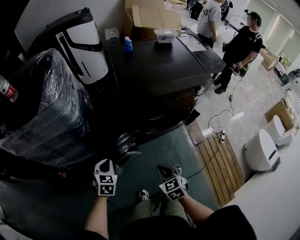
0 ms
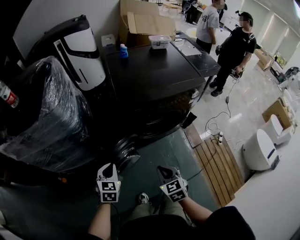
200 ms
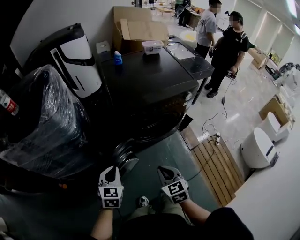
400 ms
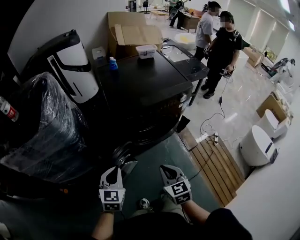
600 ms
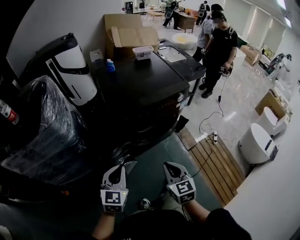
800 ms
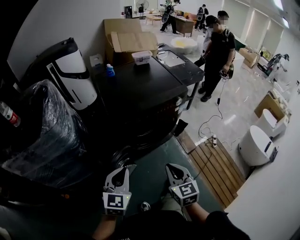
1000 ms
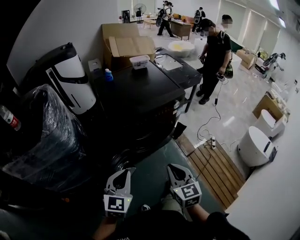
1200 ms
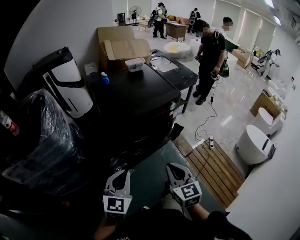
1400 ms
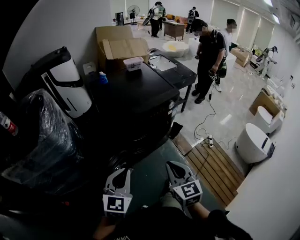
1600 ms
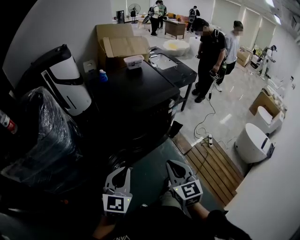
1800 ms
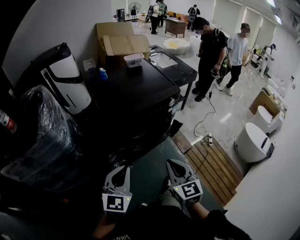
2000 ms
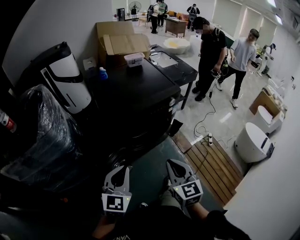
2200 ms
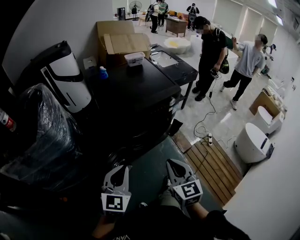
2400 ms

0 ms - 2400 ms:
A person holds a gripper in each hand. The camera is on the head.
0 ms - 1200 ms: Both grippers move upward and to the right, about 25 cm. The right gripper rotates about 30 degrees; the left gripper turns by approximately 30 degrees.
1200 ms - 2400 ms: The grippers make only small movements.

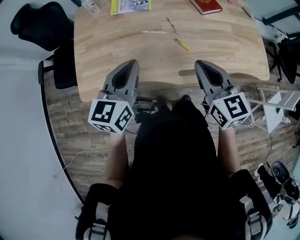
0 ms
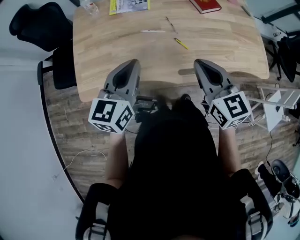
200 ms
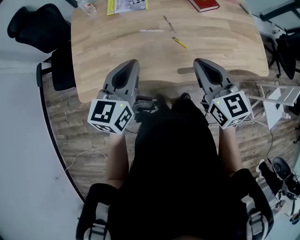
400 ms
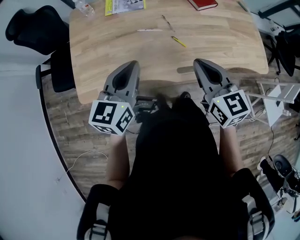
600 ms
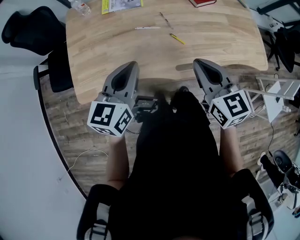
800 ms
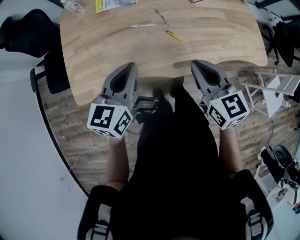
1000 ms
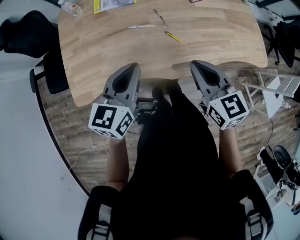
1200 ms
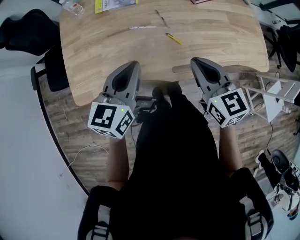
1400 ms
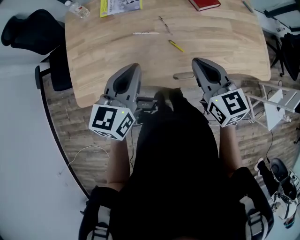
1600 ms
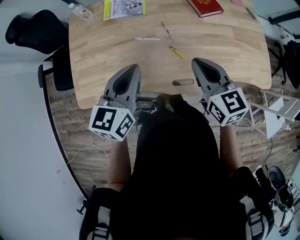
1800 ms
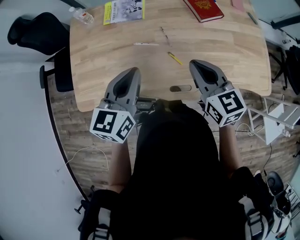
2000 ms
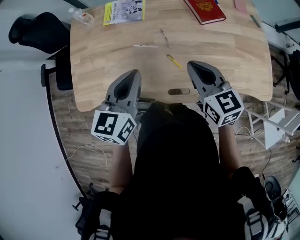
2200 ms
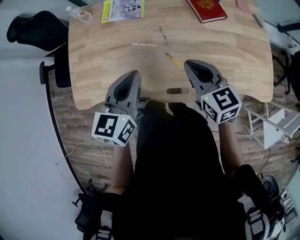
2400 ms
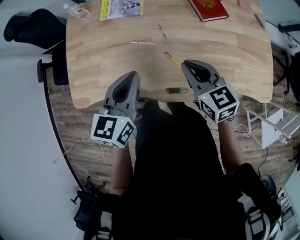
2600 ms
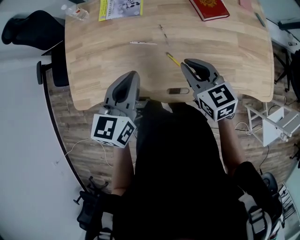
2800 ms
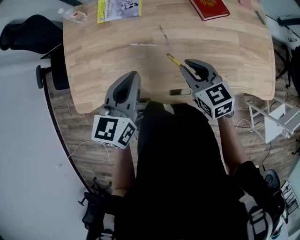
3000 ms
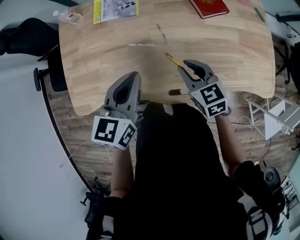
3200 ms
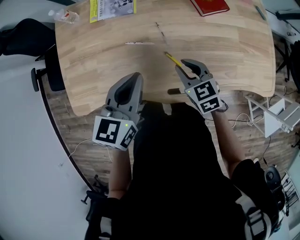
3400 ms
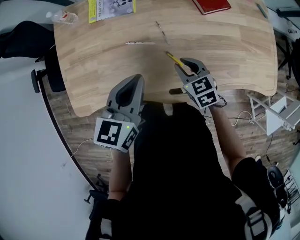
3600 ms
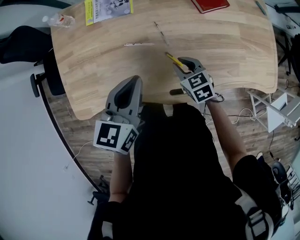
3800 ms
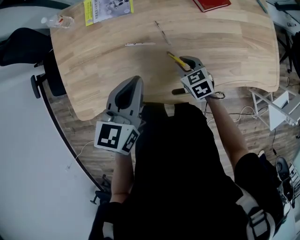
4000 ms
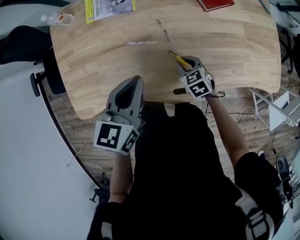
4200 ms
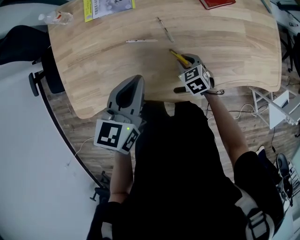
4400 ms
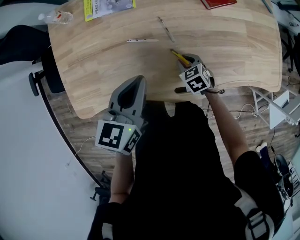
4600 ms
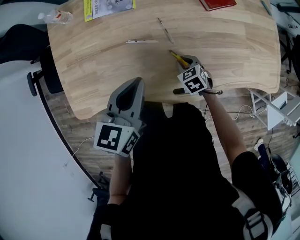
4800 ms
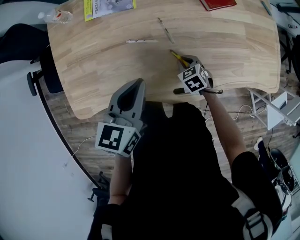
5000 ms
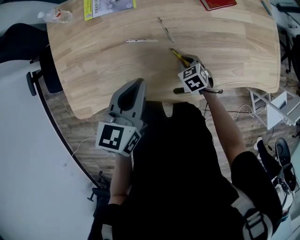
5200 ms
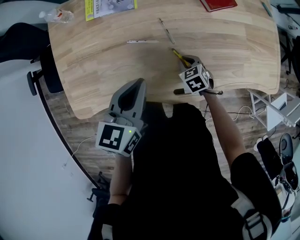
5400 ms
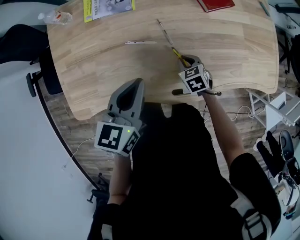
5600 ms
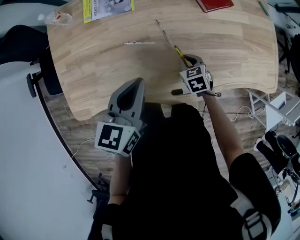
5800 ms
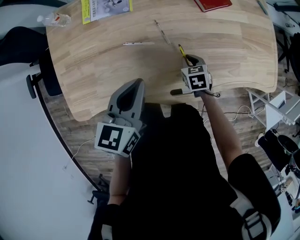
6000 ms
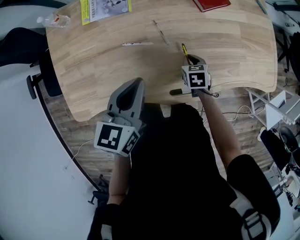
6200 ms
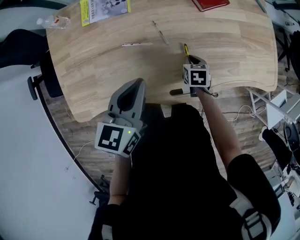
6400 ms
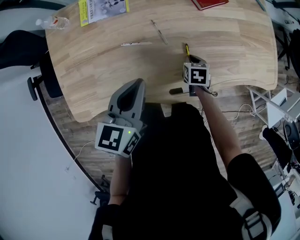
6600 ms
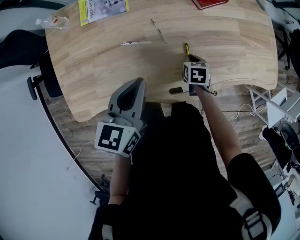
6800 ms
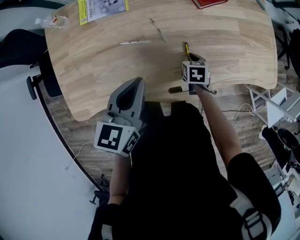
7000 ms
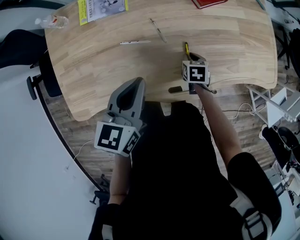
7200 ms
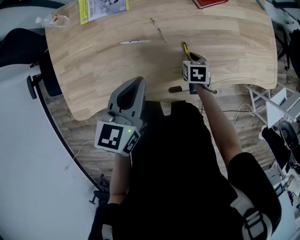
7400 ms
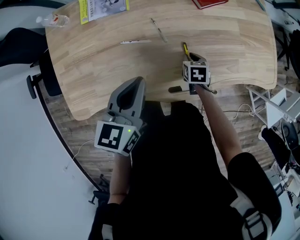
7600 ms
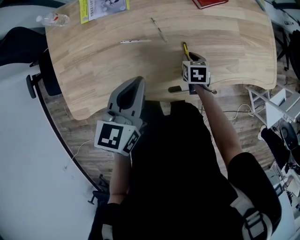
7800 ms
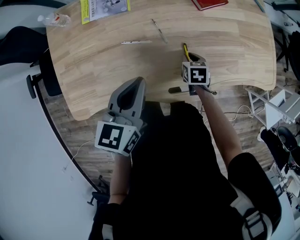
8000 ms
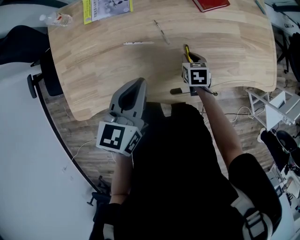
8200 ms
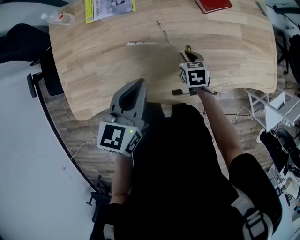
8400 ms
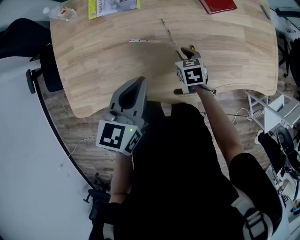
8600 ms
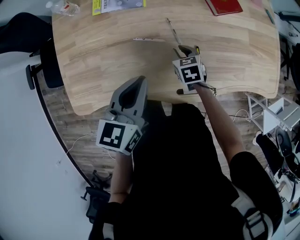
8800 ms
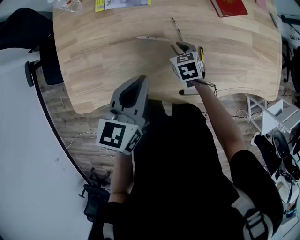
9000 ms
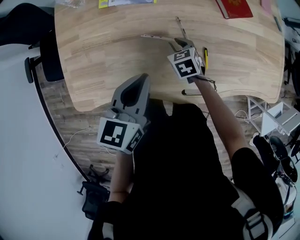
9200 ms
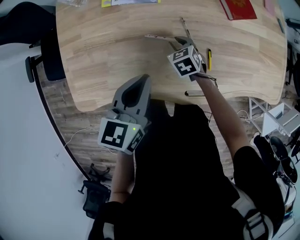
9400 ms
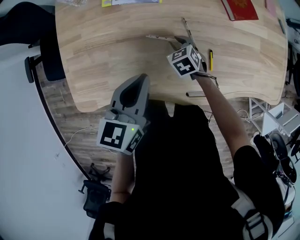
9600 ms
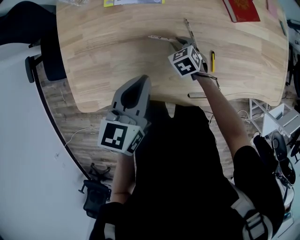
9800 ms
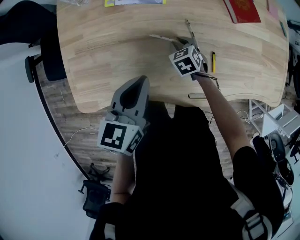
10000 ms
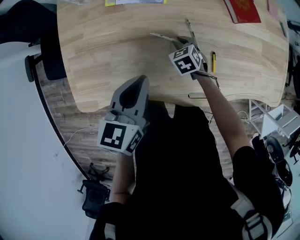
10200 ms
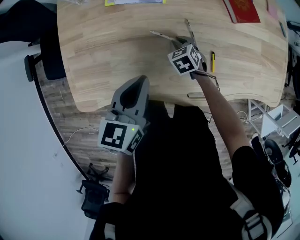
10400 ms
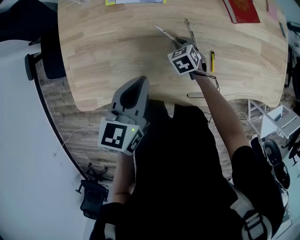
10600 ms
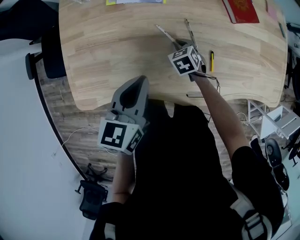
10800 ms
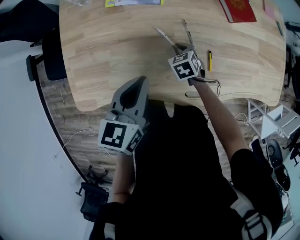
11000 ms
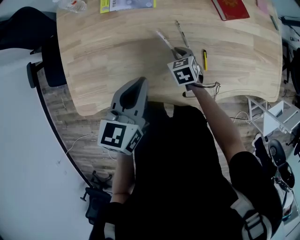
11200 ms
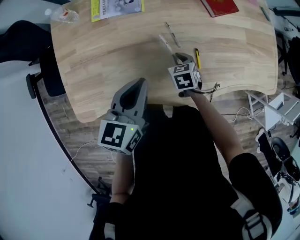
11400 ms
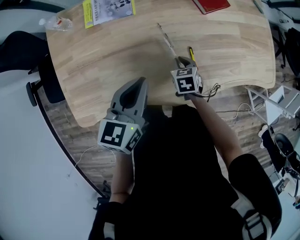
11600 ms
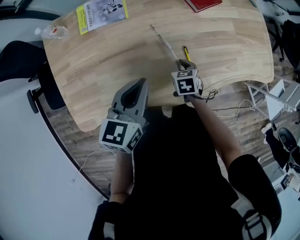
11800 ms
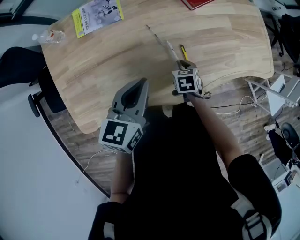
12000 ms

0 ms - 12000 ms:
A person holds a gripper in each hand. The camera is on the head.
0 ms - 1600 ms: The left gripper heads to the right, covering some 5 cm. Meanwhile the right gripper is displaced forward by about 5 cm.
1600 ms - 3000 ms: The right gripper heads forward and downward, covering roughly 15 cm, while the left gripper travels forward by some 5 cm.
3000 ms - 4400 ms: The left gripper heads downward, covering about 5 cm; the right gripper travels downward by roughly 20 cm, and turns by about 30 degrees.
4400 ms - 6000 ms: The grippers move only a little.
6000 ms - 7600 ms: There are only small adjustments of the grippers.
7600 ms - 9000 ms: The left gripper shifts some 5 cm to the left. Meanwhile the right gripper is displaced to the left by roughly 15 cm, and swivels about 20 degrees.
9000 ms - 10400 ms: The right gripper shifts by about 5 cm. The left gripper changes place by roughly 5 cm.
10400 ms - 12000 ms: The left gripper moves to the right, roughly 10 cm, while the right gripper heads to the right and backward, covering some 20 cm, and changes its angle by approximately 40 degrees.

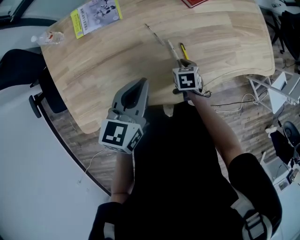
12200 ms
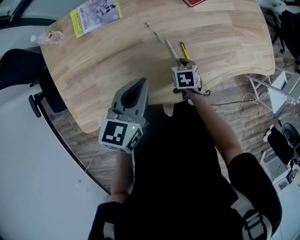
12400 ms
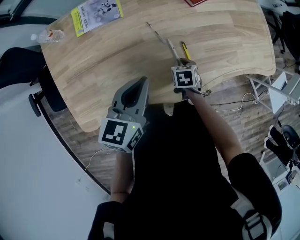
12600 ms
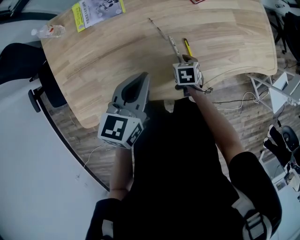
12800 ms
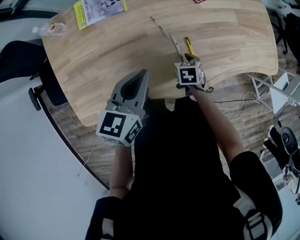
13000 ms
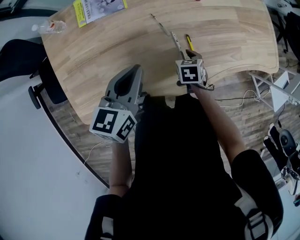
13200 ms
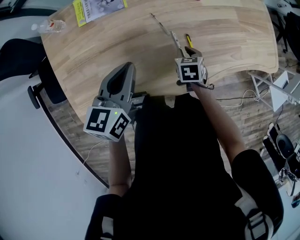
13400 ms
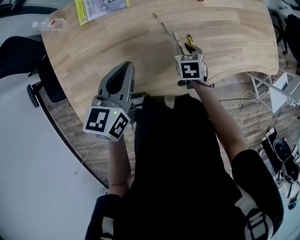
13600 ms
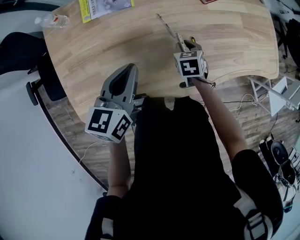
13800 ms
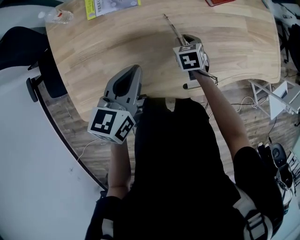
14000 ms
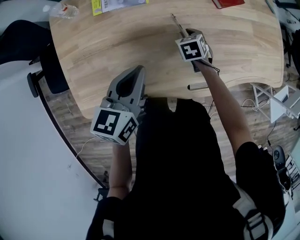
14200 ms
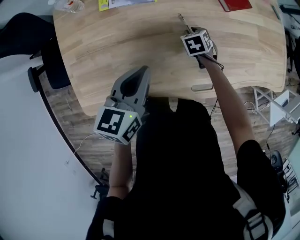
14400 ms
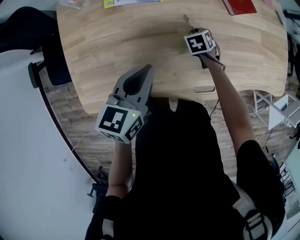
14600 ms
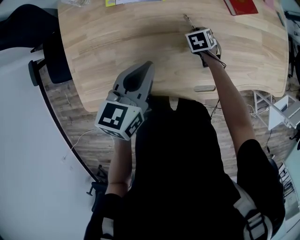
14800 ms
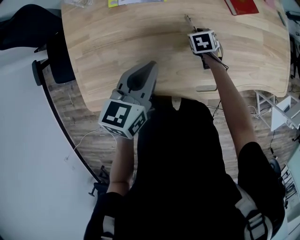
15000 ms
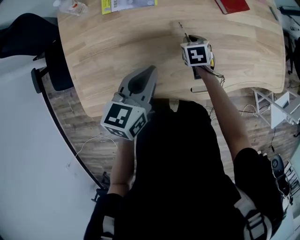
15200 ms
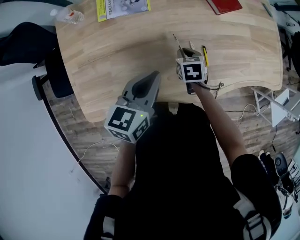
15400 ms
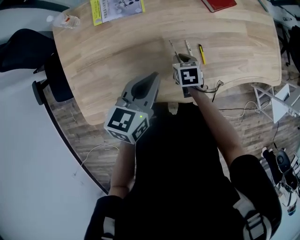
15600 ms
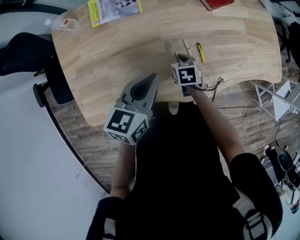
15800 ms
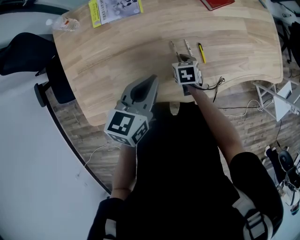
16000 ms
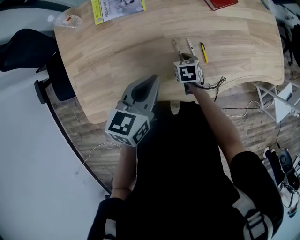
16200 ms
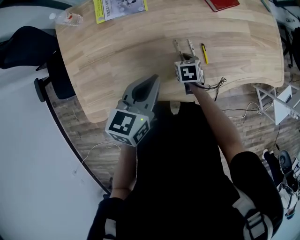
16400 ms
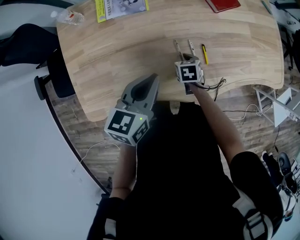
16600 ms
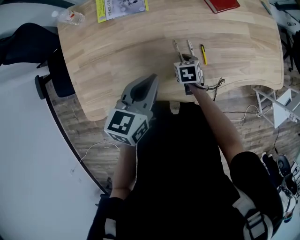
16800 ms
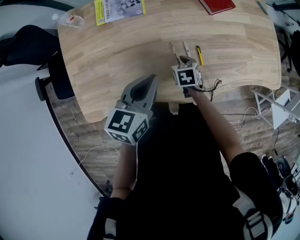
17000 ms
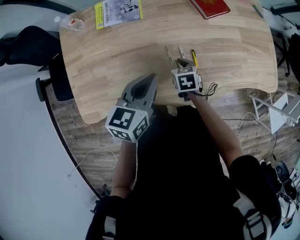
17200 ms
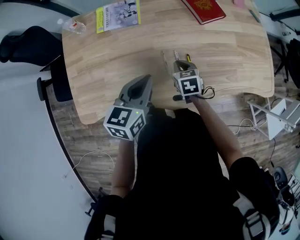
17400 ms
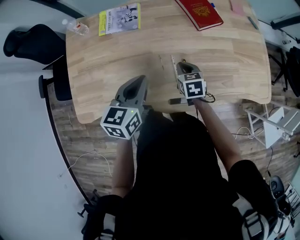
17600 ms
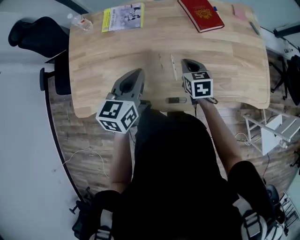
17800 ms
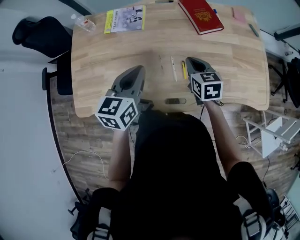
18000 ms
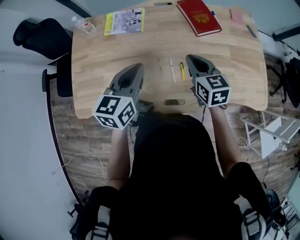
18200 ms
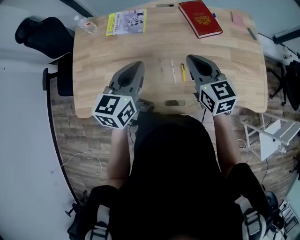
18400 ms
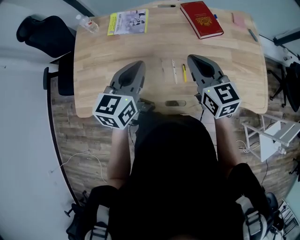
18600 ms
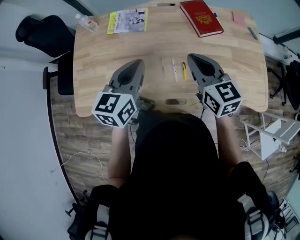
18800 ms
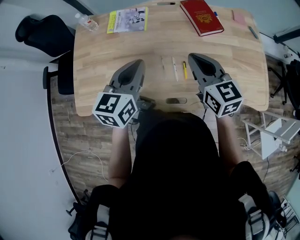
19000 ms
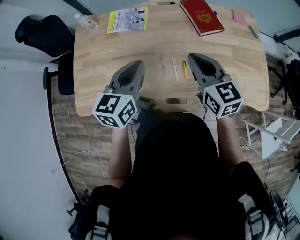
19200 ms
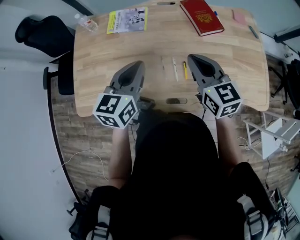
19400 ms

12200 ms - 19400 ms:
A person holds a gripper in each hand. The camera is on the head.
12200 ms - 13600 ms: The left gripper travels to the left by roughly 5 cm. The right gripper moves about 5 cm.
13600 ms - 15000 ms: The right gripper moves forward and to the left, some 10 cm.
15000 ms - 16600 ms: The left gripper heads to the right, covering about 5 cm. Meanwhile the right gripper travels backward by approximately 10 cm.
16600 ms - 18000 ms: The right gripper moves upward and to the right, roughly 25 cm, and rotates some 30 degrees. Meanwhile the left gripper goes roughly 10 cm to the right and upward.
18000 ms - 19400 ms: The right gripper heads upward, covering roughly 15 cm, and changes its angle by about 20 degrees.

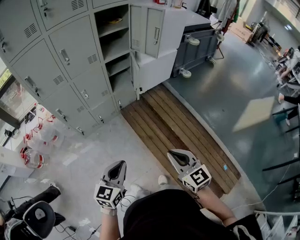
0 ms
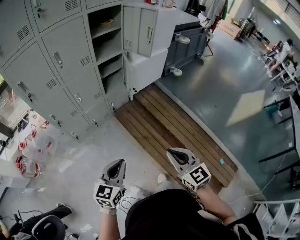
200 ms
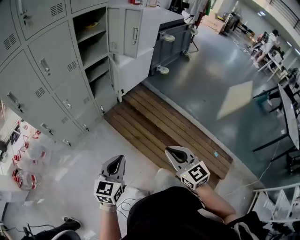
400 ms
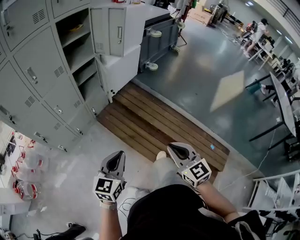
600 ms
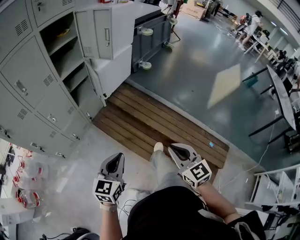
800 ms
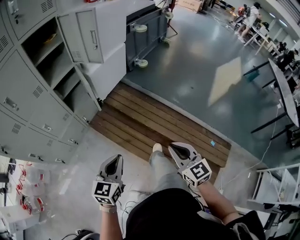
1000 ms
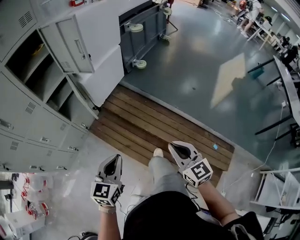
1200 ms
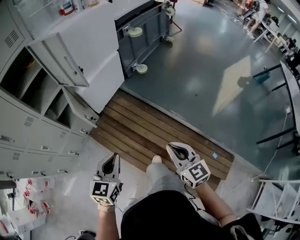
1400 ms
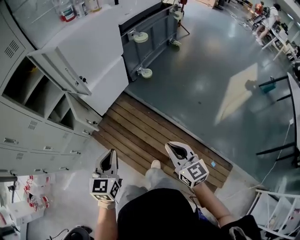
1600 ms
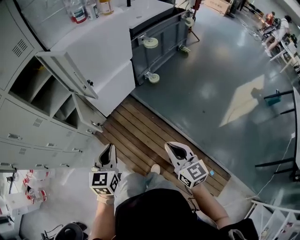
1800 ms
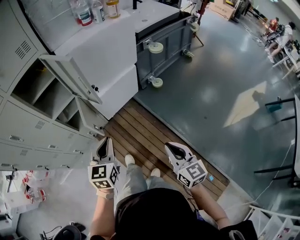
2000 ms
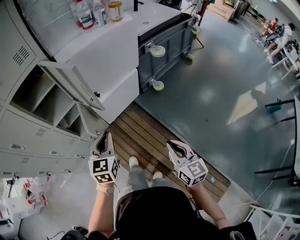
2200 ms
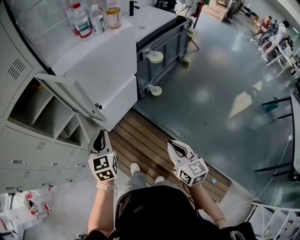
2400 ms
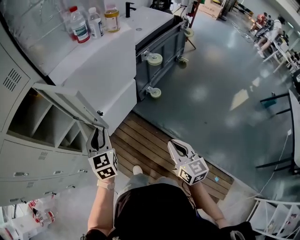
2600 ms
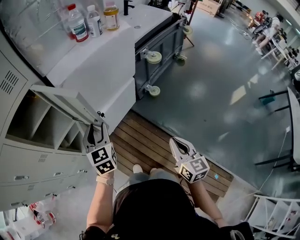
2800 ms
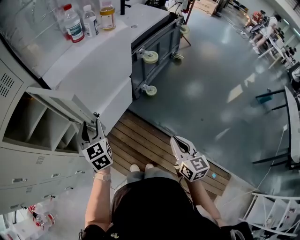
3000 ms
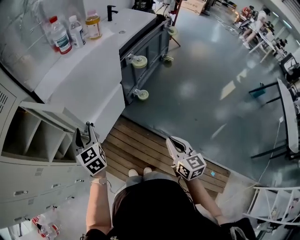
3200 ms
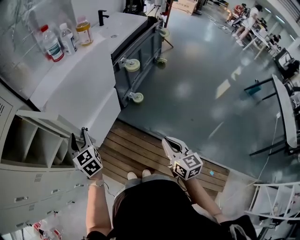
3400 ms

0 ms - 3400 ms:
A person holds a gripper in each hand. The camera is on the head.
0 ms - 1600 ms: The pair of grippers is taken forward and to the right, some 40 cm. The right gripper swivels roughly 20 degrees.
1600 ms - 3400 ms: The left gripper is displaced forward by about 40 cm, changes its angle by roughly 30 degrees, and opens, while the right gripper goes about 25 cm forward.
